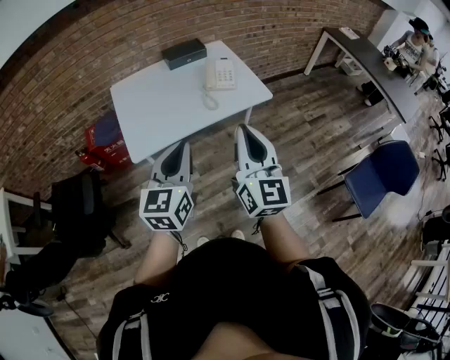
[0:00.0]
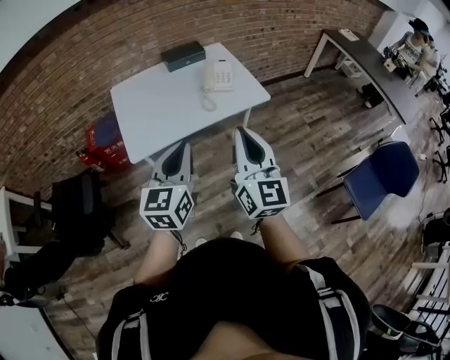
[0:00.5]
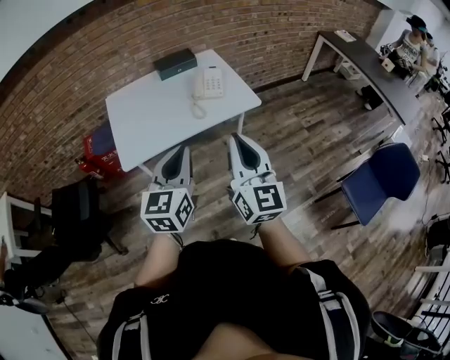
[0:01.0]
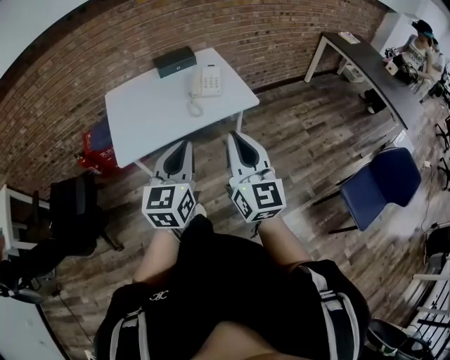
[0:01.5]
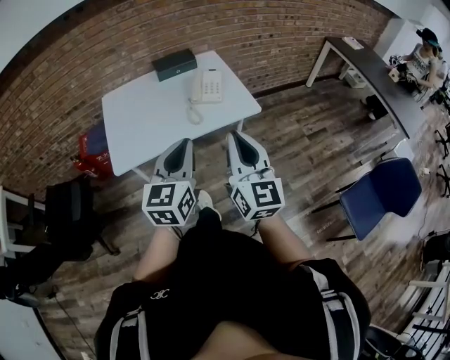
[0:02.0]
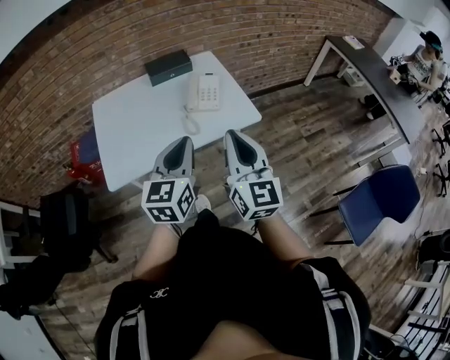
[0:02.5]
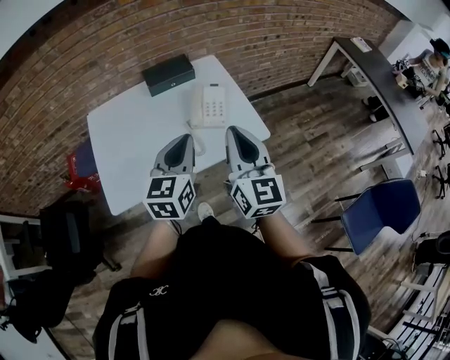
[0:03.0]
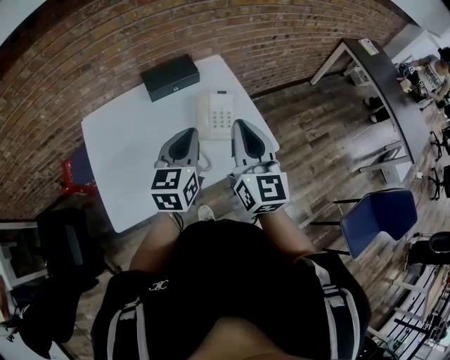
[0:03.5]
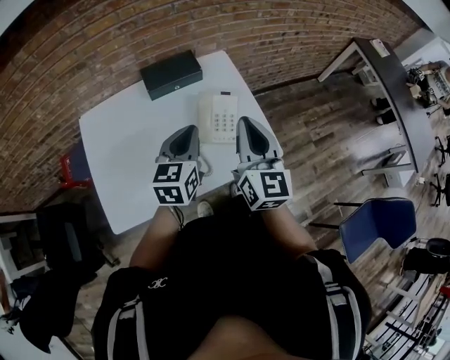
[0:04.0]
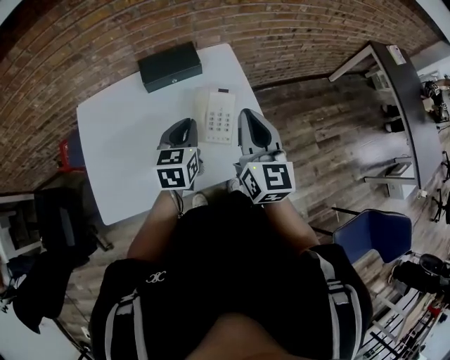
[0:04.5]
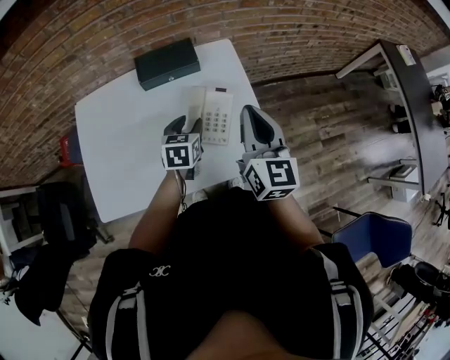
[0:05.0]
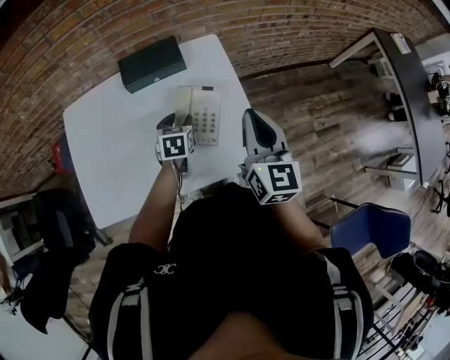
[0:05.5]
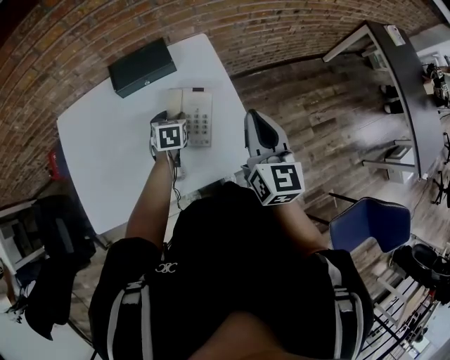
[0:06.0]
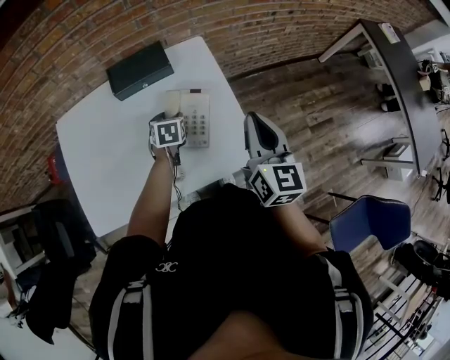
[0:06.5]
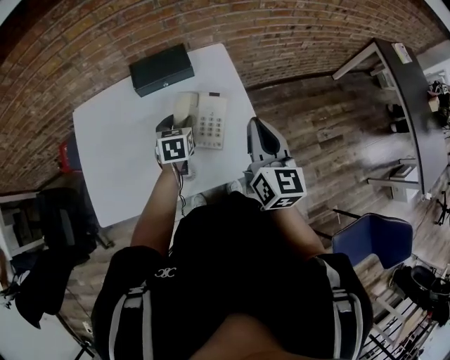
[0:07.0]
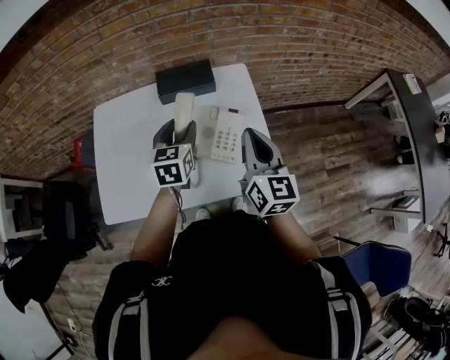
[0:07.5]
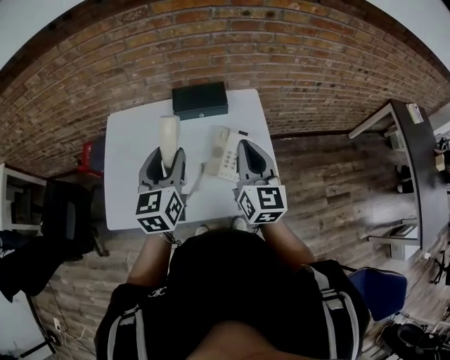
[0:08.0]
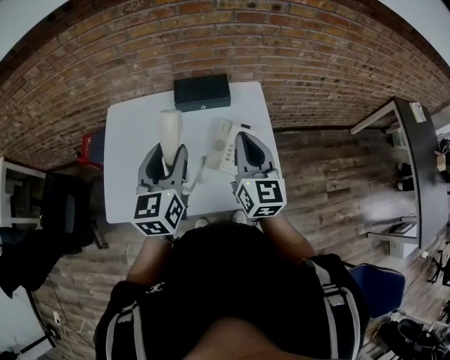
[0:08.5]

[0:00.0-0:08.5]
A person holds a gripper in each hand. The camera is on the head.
0:00.0 to 0:02.0: Both grippers move to the right and forward, some 10 cm.
0:02.0 to 0:04.0: The two grippers go about 40 cm forward.
0:04.0 to 0:06.5: The left gripper moves downward and forward, roughly 25 cm, angles its fingers downward, by roughly 30 degrees, and opens its fingers. The right gripper heads to the right and forward, covering about 15 cm.
0:06.5 to 0:08.5: The right gripper moves to the left, some 15 cm. Meanwhile the left gripper moves upward and backward, approximately 35 cm, and points its fingers some 40 degrees further upward.

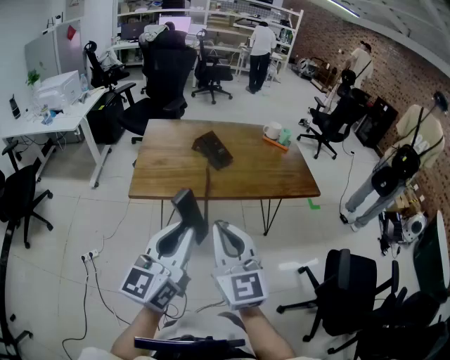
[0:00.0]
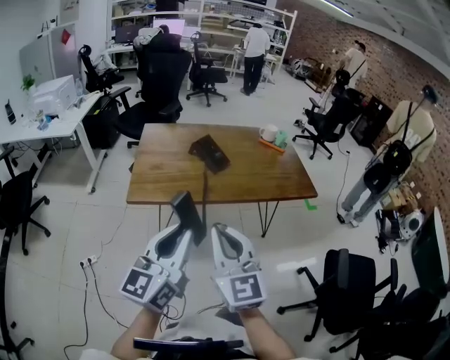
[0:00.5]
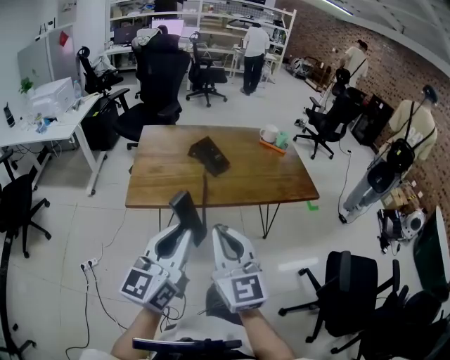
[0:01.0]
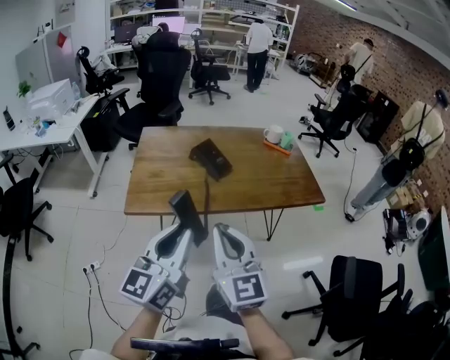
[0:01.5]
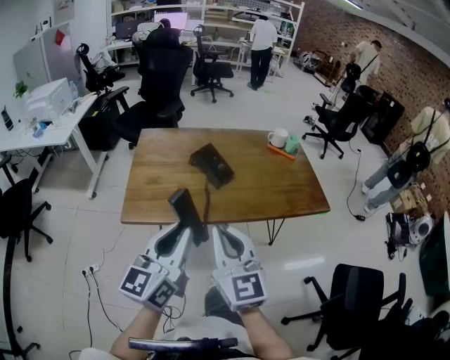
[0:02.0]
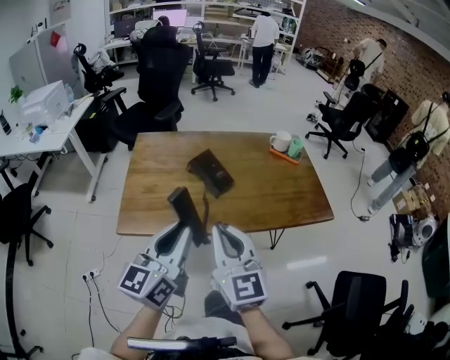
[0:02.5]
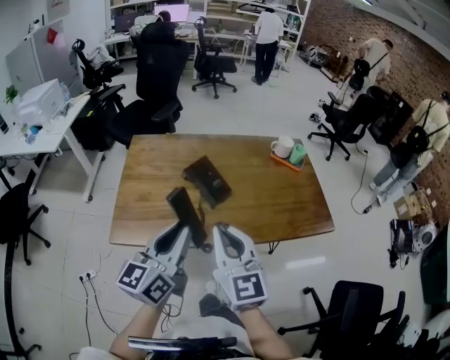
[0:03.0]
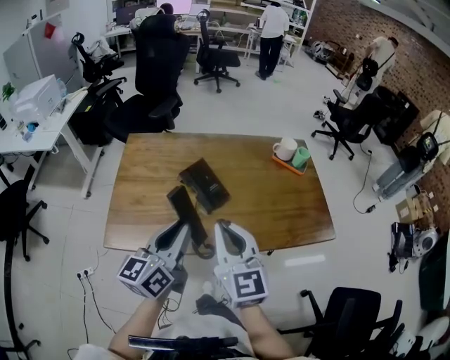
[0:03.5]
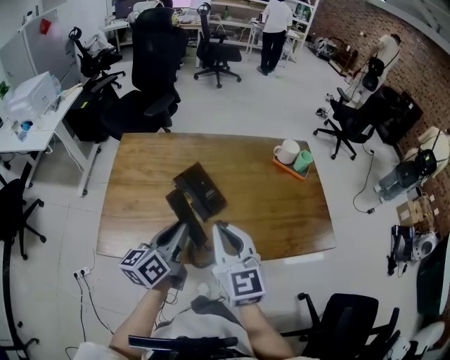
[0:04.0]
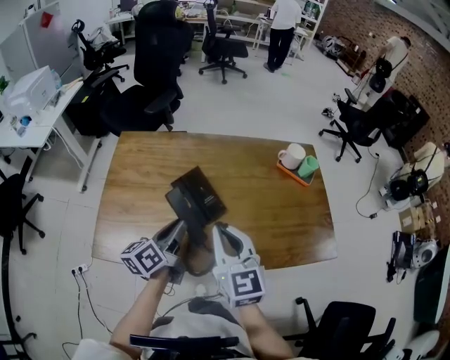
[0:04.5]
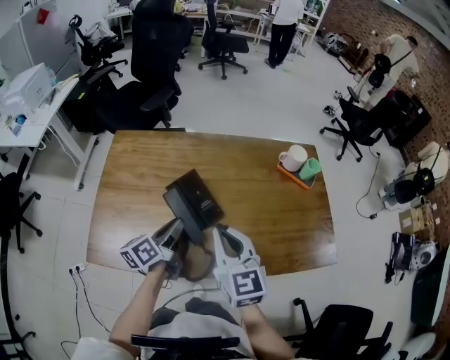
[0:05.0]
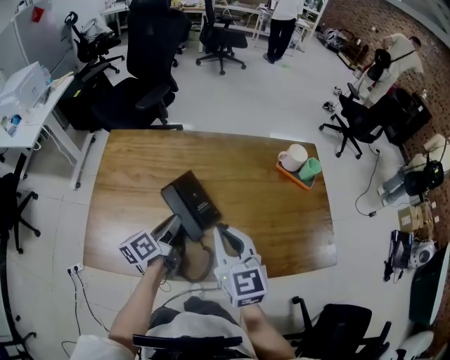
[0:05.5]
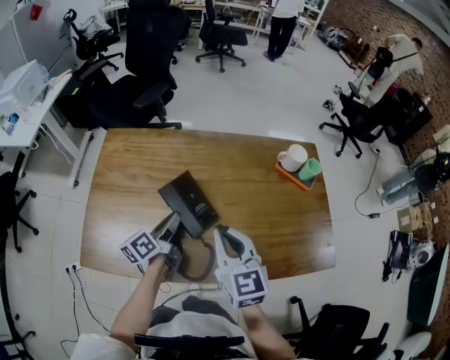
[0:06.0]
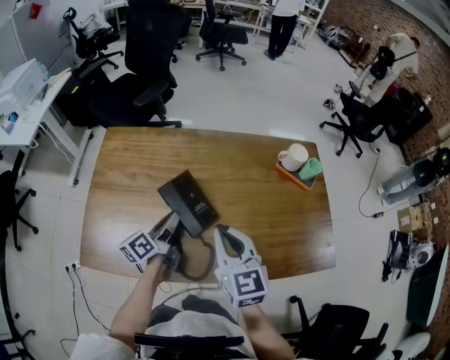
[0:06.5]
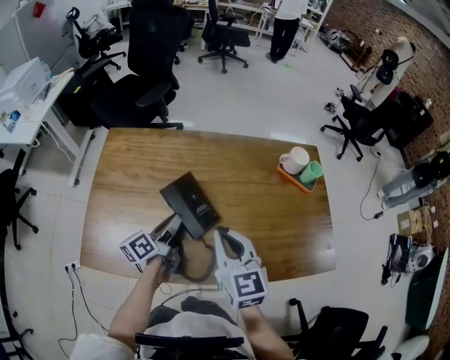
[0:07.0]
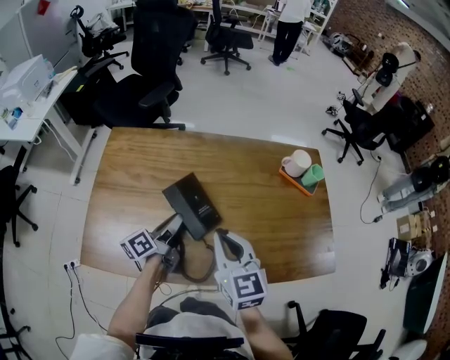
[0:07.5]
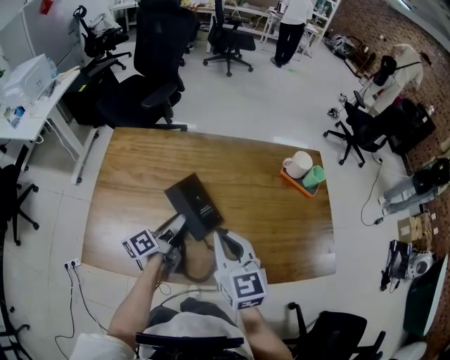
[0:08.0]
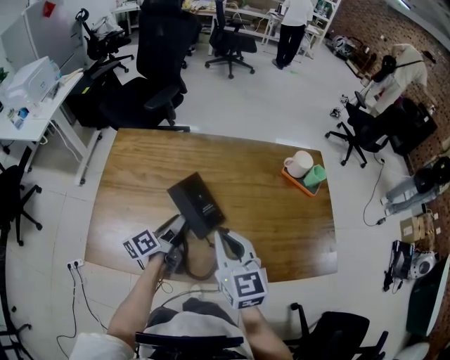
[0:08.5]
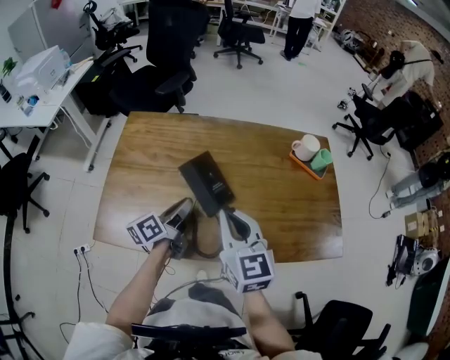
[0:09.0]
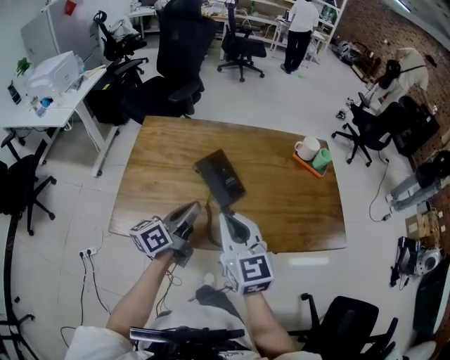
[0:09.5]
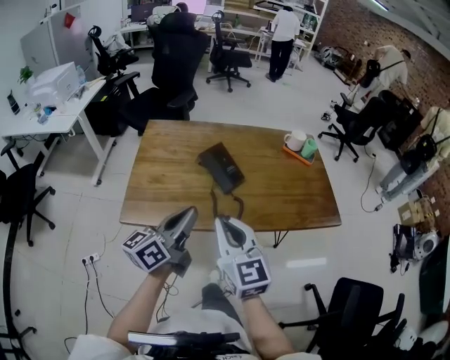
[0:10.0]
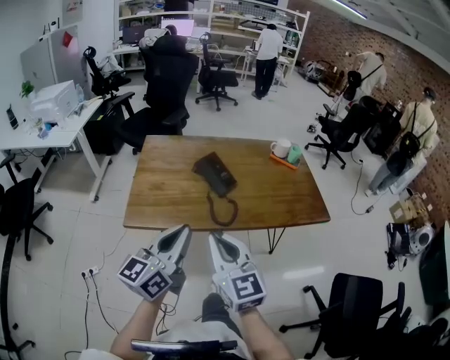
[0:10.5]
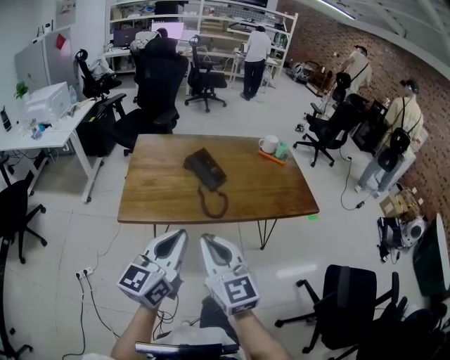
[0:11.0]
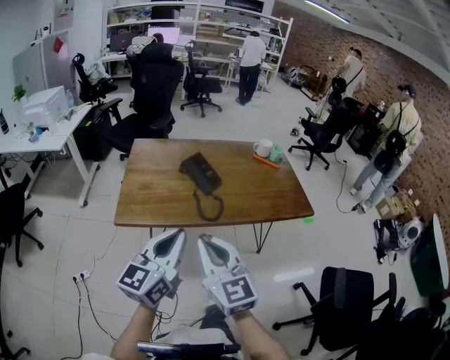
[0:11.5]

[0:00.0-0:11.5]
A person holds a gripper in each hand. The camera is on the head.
0:00.0 to 0:02.0: Both grippers travel together forward, some 15 cm.
0:02.0 to 0:04.0: The left gripper shifts roughly 30 cm forward and downward, and rotates about 30 degrees. The right gripper goes about 25 cm forward.
0:04.0 to 0:06.0: The left gripper heads forward and downward, covering roughly 20 cm, and changes its angle by roughly 20 degrees; the right gripper is displaced forward and downward by some 10 cm.
0:06.0 to 0:07.5: There are only small adjustments of the grippers.
0:07.5 to 0:09.5: The right gripper goes approximately 15 cm backward, to the left and upward. The left gripper heads backward and upward, covering about 15 cm.
0:09.5 to 0:11.5: The left gripper moves backward and upward, roughly 35 cm, and turns by roughly 40 degrees; the right gripper goes some 25 cm backward.

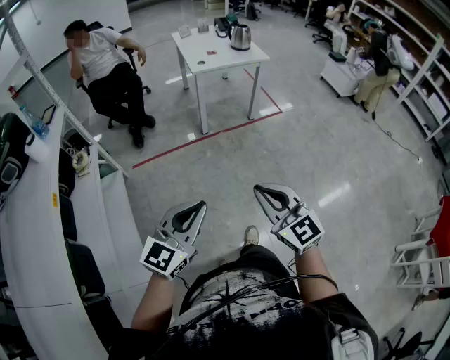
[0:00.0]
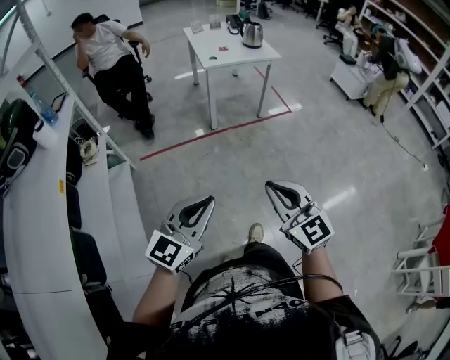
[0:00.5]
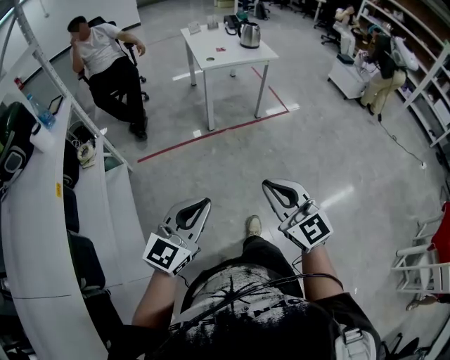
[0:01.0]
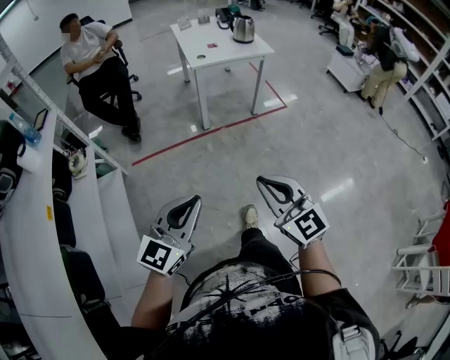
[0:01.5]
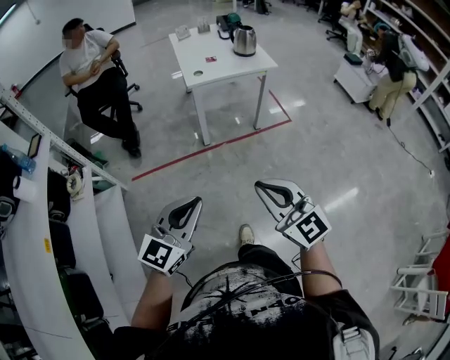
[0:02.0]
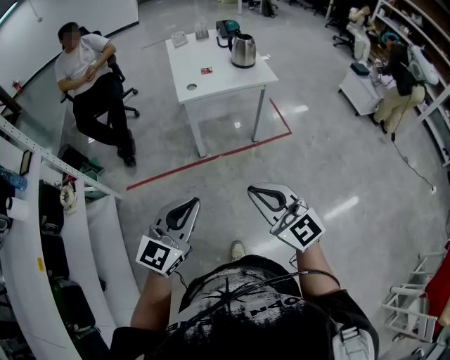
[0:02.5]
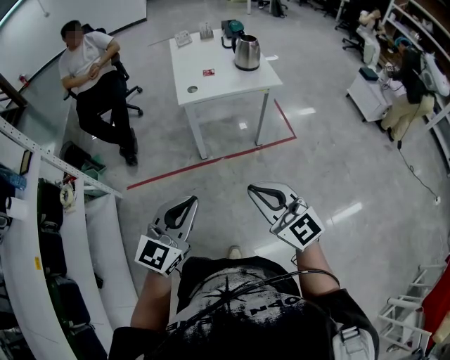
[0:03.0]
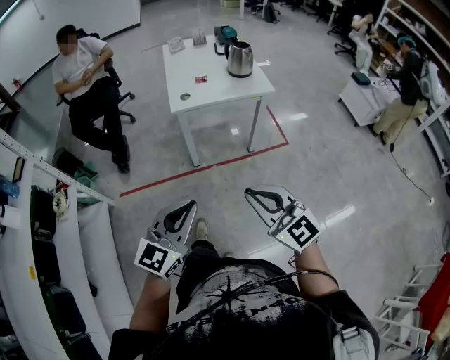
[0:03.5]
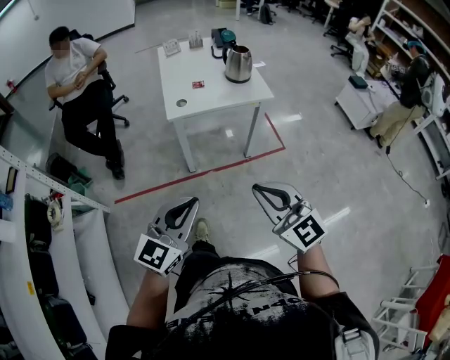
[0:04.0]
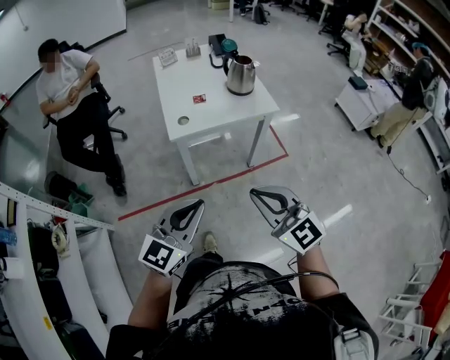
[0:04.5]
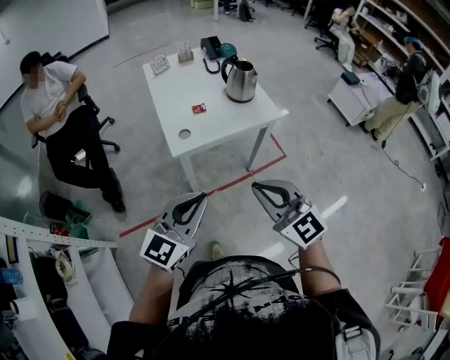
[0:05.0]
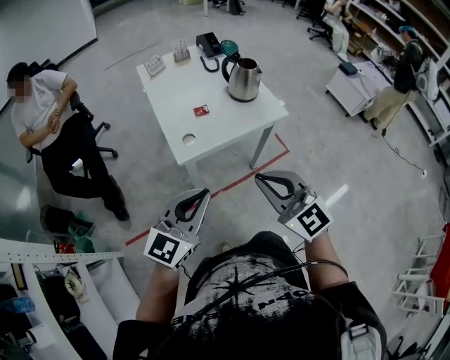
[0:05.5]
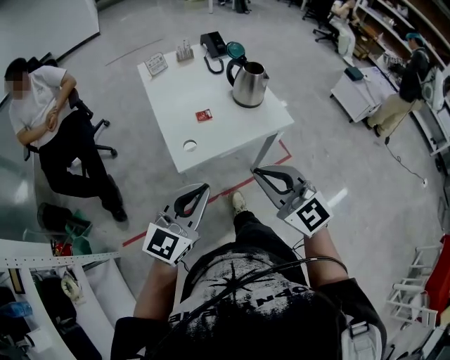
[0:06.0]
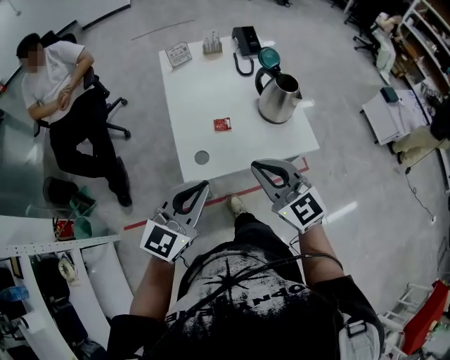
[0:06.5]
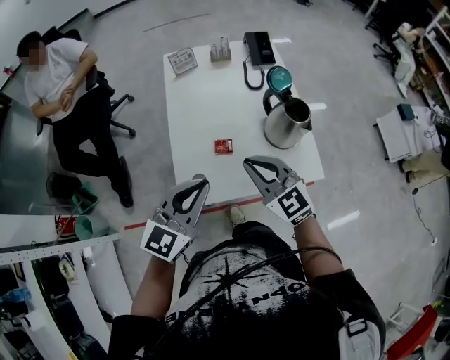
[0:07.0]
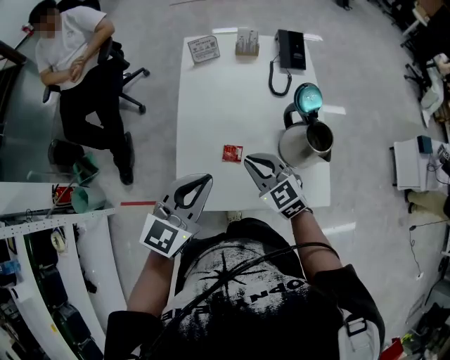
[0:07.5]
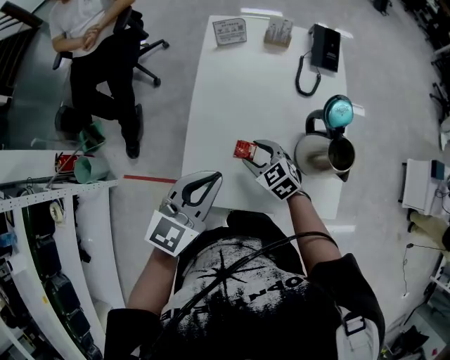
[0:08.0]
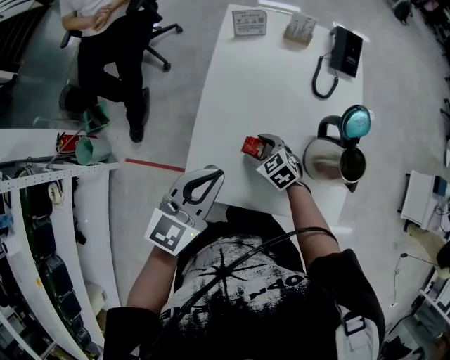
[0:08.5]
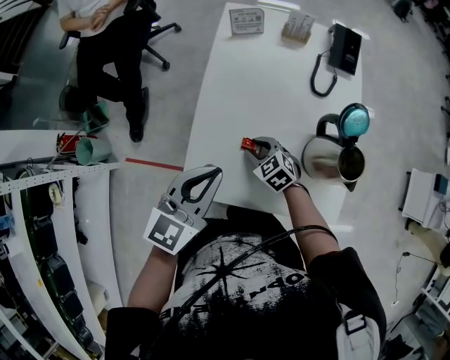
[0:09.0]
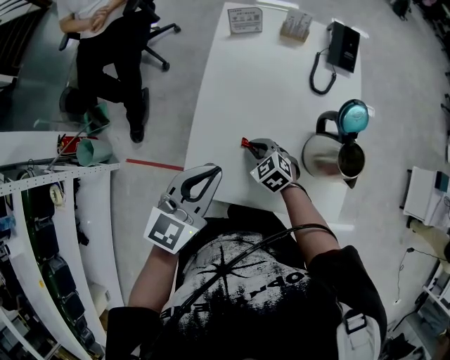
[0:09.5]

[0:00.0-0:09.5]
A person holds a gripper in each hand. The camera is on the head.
0:00.0 to 0:02.0: Both grippers travel together forward, approximately 20 cm.
0:02.0 to 0:04.0: Both grippers travel together forward and to the right, approximately 25 cm.
0:04.0 to 0:05.5: The right gripper travels forward and to the left by approximately 30 cm. Meanwhile the left gripper heads forward, covering roughly 25 cm.
0:05.5 to 0:07.5: The left gripper travels forward by roughly 35 cm, and turns by about 30 degrees. The right gripper heads forward and downward, covering some 50 cm, and swivels about 30 degrees.
0:07.5 to 0:09.5: The right gripper heads downward, covering approximately 15 cm, changes its angle by roughly 30 degrees, and opens, then closes again.
